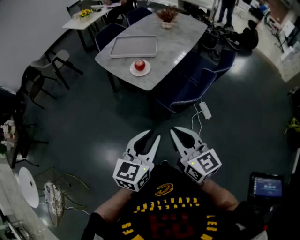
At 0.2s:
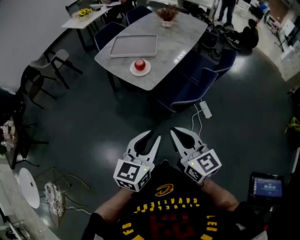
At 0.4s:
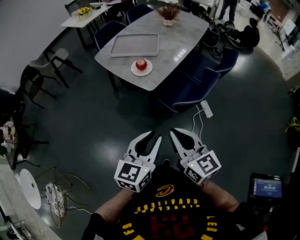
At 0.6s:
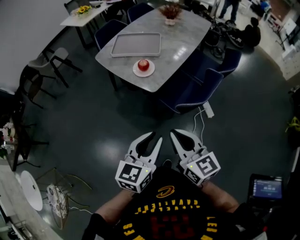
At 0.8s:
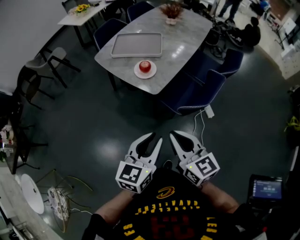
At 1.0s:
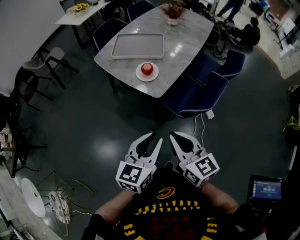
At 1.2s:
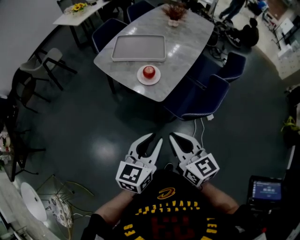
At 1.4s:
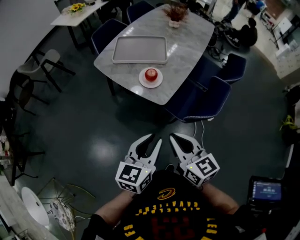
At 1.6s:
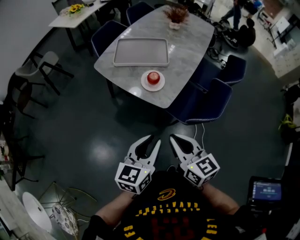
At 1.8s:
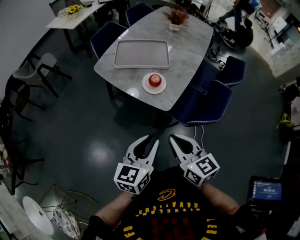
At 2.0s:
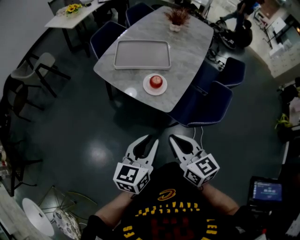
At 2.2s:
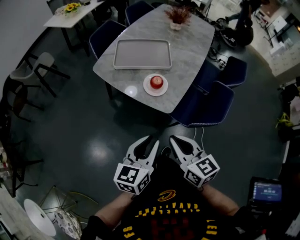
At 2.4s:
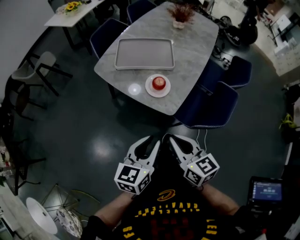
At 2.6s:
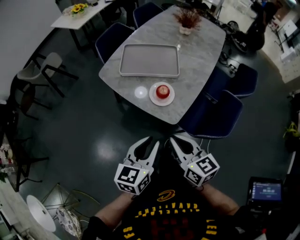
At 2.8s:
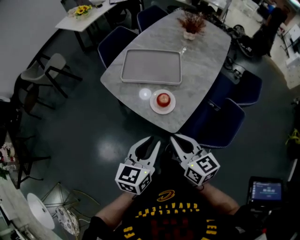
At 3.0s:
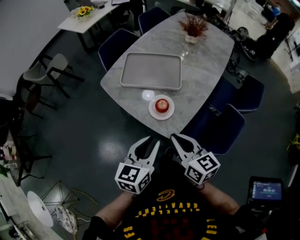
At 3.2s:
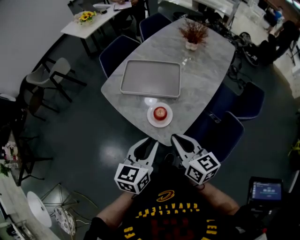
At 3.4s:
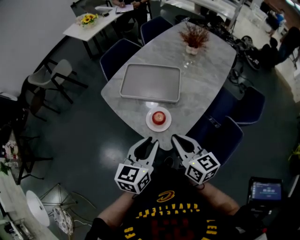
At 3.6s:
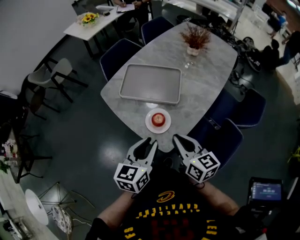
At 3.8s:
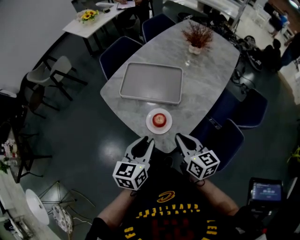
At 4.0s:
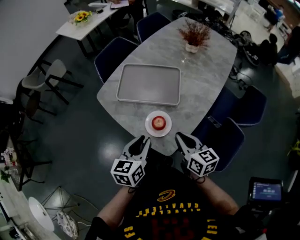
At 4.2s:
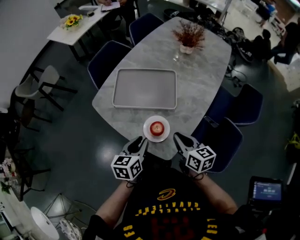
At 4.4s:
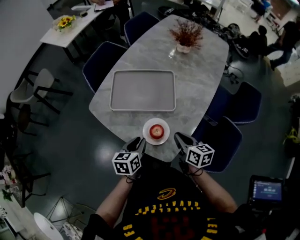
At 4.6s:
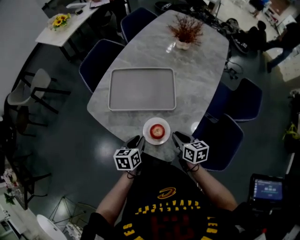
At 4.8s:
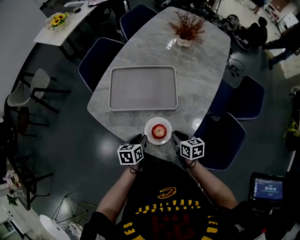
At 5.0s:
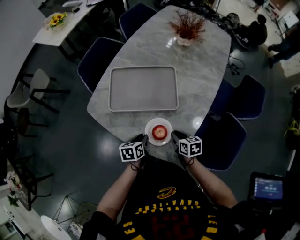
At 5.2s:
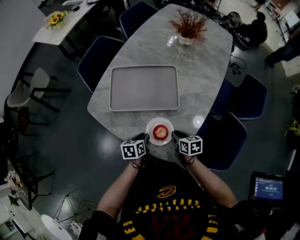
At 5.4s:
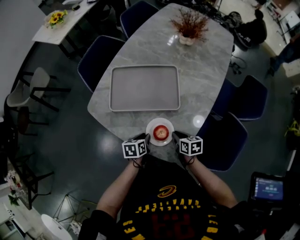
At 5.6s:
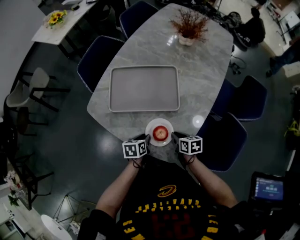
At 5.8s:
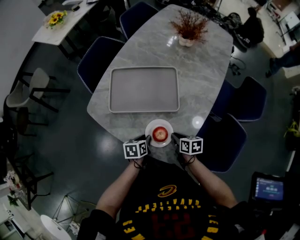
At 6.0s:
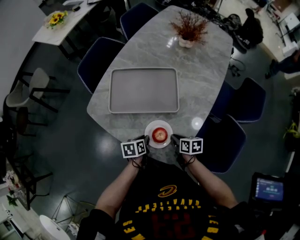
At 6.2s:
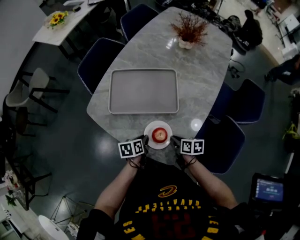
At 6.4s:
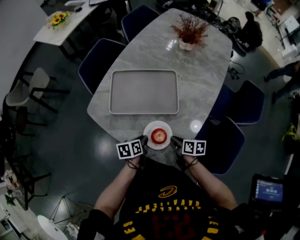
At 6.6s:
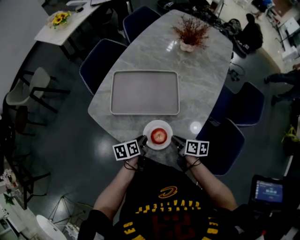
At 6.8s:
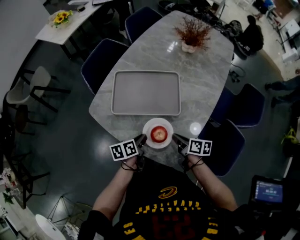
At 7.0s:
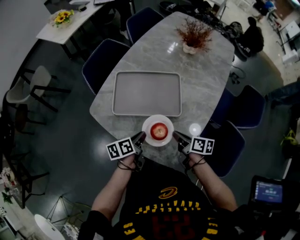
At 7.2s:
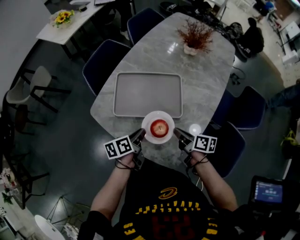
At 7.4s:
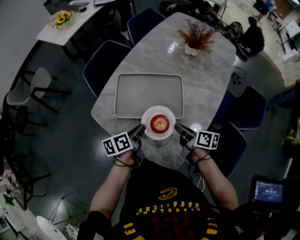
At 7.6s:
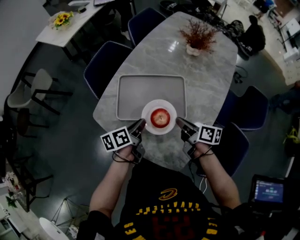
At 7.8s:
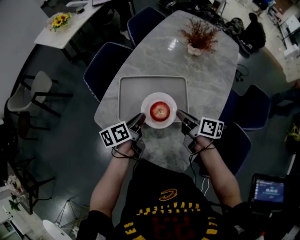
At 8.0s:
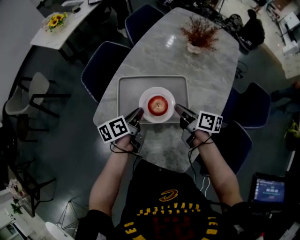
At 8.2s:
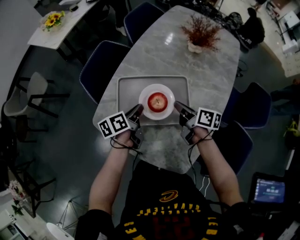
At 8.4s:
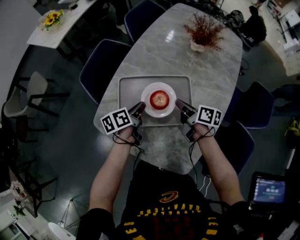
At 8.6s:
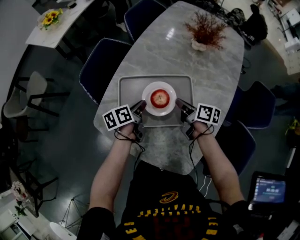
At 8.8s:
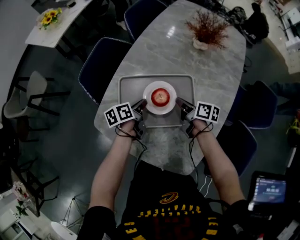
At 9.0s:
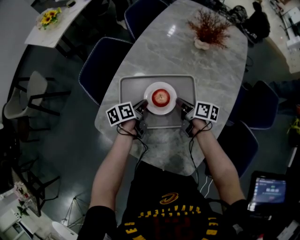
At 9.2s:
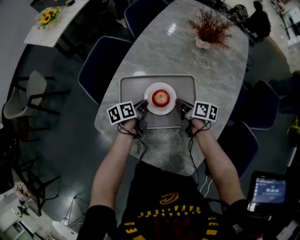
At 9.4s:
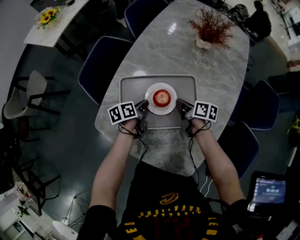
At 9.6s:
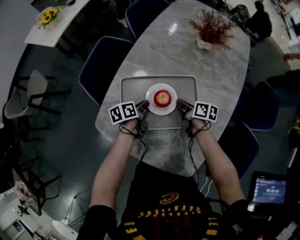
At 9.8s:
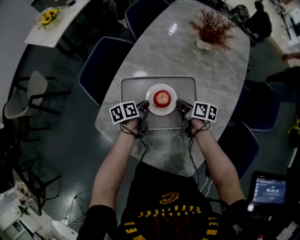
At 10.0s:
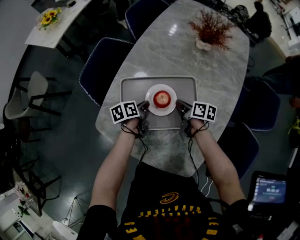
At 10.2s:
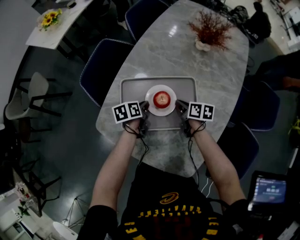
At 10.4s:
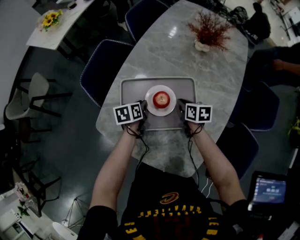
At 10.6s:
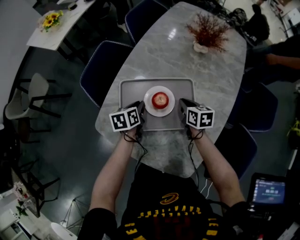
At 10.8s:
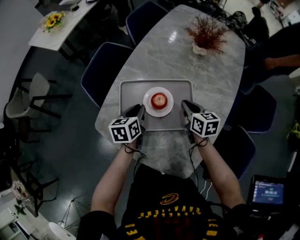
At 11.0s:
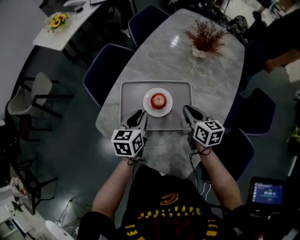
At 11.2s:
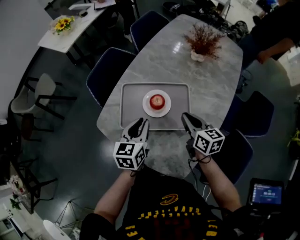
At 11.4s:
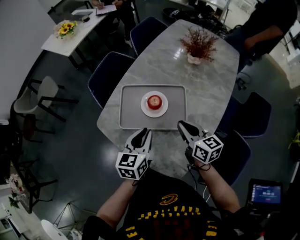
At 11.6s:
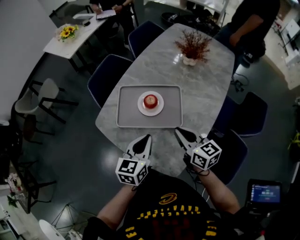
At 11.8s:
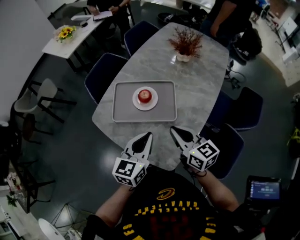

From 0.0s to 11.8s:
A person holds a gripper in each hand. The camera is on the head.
From 0.0s to 1.4s: The two grippers go some 20 cm forward and to the left.
From 1.4s to 3.0s: Both grippers travel together forward, roughly 20 cm.
From 3.0s to 4.4s: The right gripper travels forward, downward and to the right by some 20 cm, and changes its angle by some 20 degrees; the left gripper shifts about 20 cm forward and downward, and rotates approximately 20 degrees.
From 4.4s to 6.0s: Both grippers move downward, approximately 15 cm. The right gripper turns by about 20 degrees. Meanwhile the left gripper turns by some 20 degrees.
From 6.0s to 7.4s: The grippers both shift upward and forward by roughly 15 cm. The left gripper swivels approximately 30 degrees. Meanwhile the right gripper rotates approximately 30 degrees.
From 7.4s to 8.8s: Both grippers travel together forward, about 15 cm.
From 8.8s to 10.4s: The left gripper rotates roughly 20 degrees, while the right gripper changes its angle by approximately 30 degrees.
From 10.4s to 11.8s: The right gripper is displaced upward and backward by some 30 cm, and angles its fingers upward, by roughly 30 degrees, while the left gripper heads upward, backward and to the right, covering roughly 35 cm, and tips its fingers upward by approximately 30 degrees.

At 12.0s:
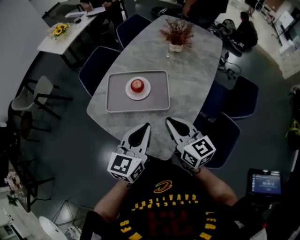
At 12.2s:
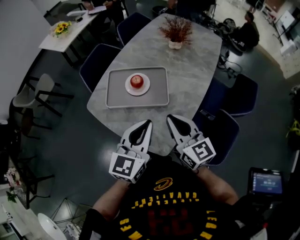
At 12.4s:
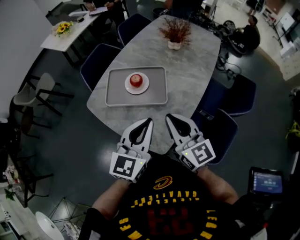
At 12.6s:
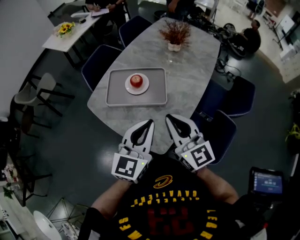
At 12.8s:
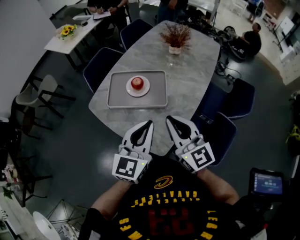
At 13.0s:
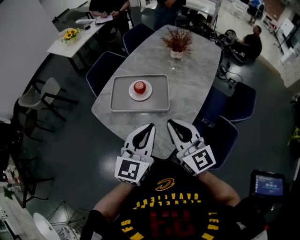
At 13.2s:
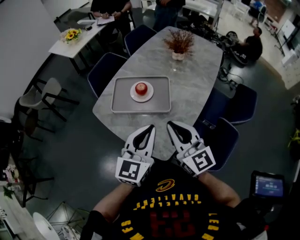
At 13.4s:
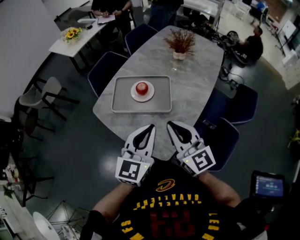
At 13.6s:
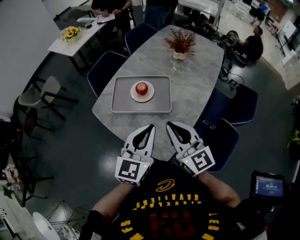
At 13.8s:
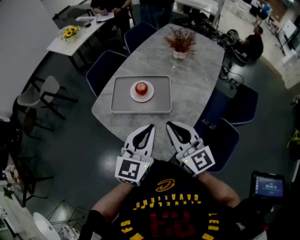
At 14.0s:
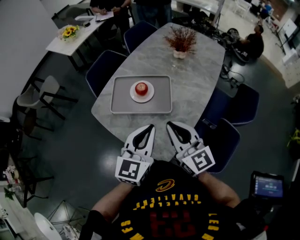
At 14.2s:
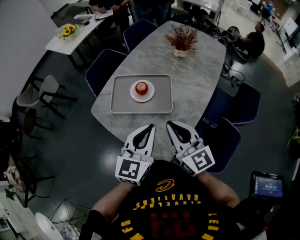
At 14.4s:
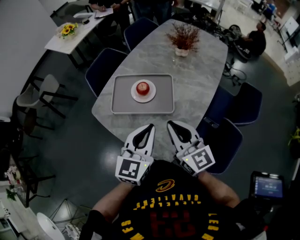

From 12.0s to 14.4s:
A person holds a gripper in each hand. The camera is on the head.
From 12.0s to 13.2s: The left gripper shifts by roughly 5 cm. The right gripper moves upward and backward, about 10 cm.
From 13.2s to 14.4s: The right gripper shifts by roughly 5 cm; the left gripper ends up some 5 cm from where it was.

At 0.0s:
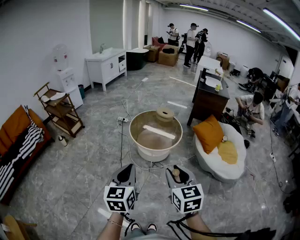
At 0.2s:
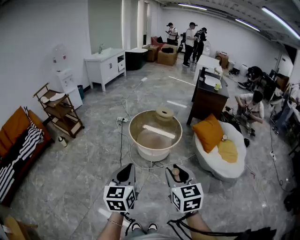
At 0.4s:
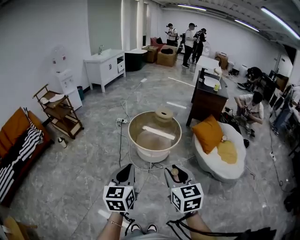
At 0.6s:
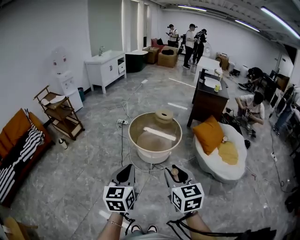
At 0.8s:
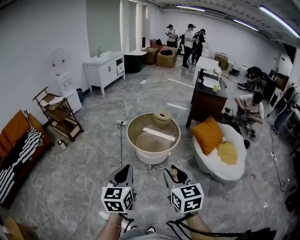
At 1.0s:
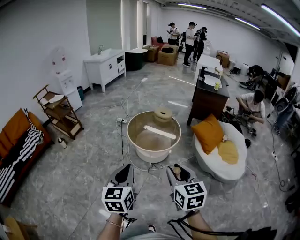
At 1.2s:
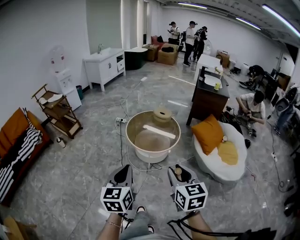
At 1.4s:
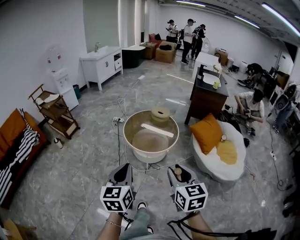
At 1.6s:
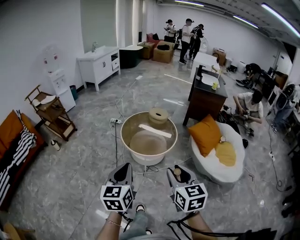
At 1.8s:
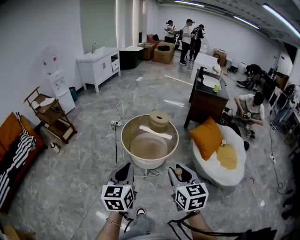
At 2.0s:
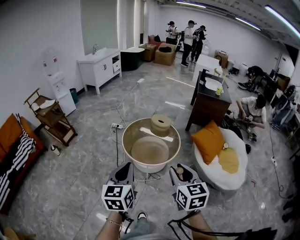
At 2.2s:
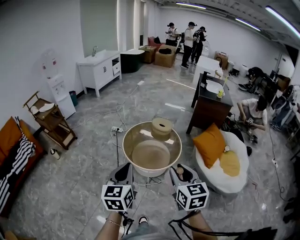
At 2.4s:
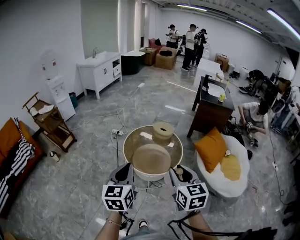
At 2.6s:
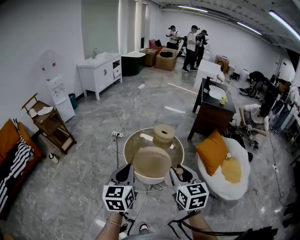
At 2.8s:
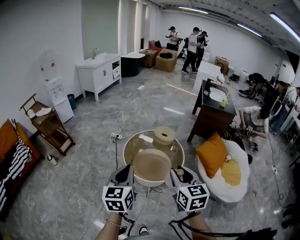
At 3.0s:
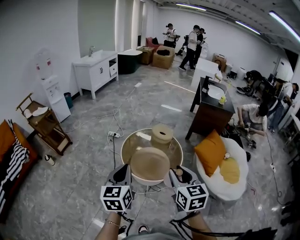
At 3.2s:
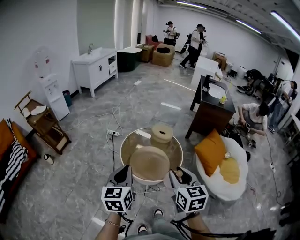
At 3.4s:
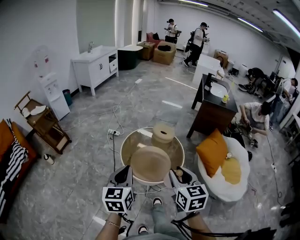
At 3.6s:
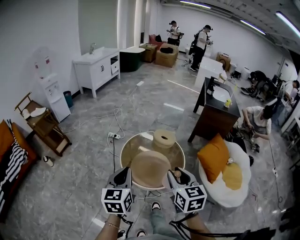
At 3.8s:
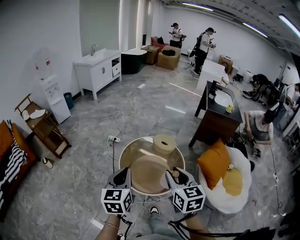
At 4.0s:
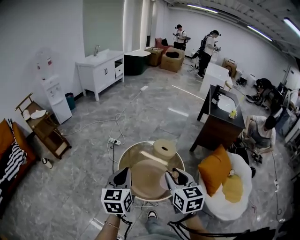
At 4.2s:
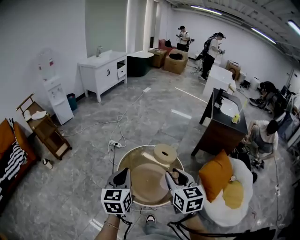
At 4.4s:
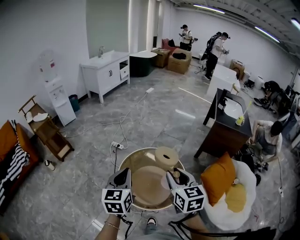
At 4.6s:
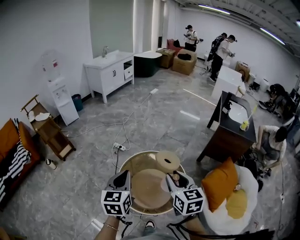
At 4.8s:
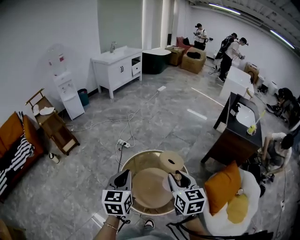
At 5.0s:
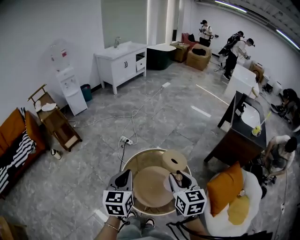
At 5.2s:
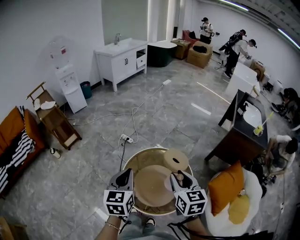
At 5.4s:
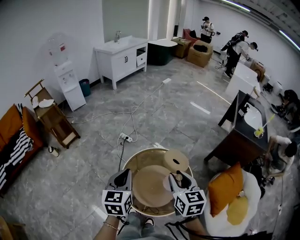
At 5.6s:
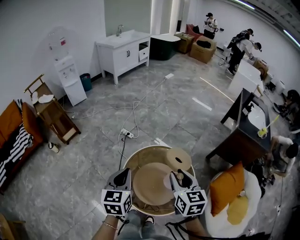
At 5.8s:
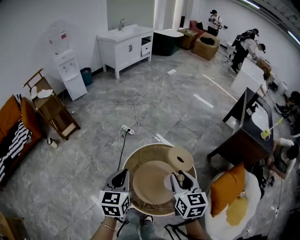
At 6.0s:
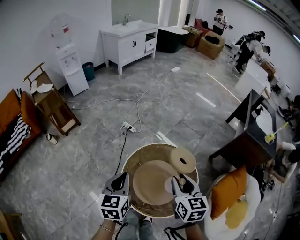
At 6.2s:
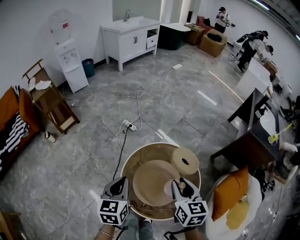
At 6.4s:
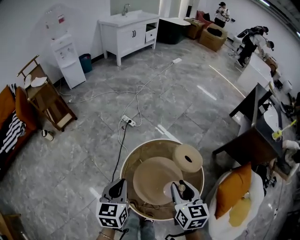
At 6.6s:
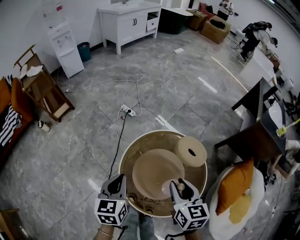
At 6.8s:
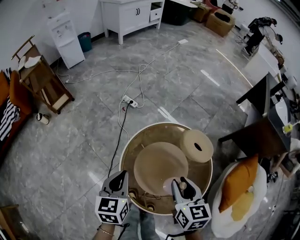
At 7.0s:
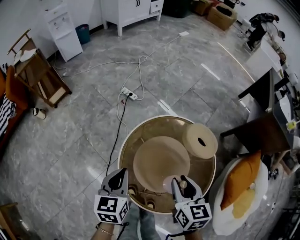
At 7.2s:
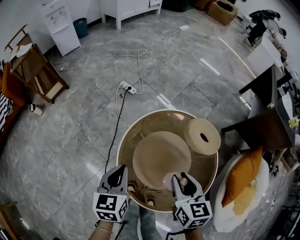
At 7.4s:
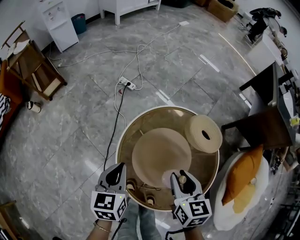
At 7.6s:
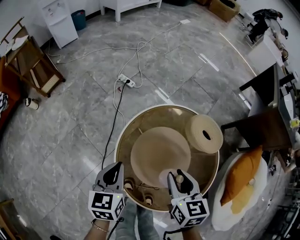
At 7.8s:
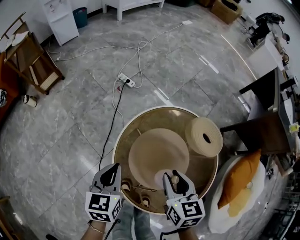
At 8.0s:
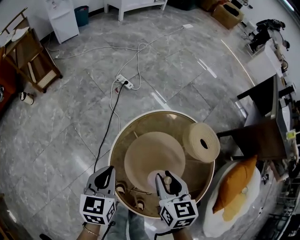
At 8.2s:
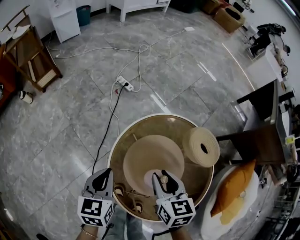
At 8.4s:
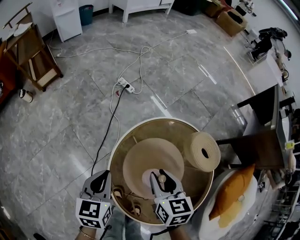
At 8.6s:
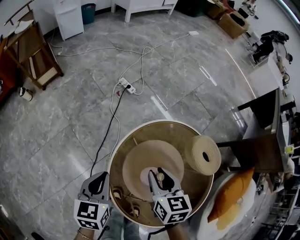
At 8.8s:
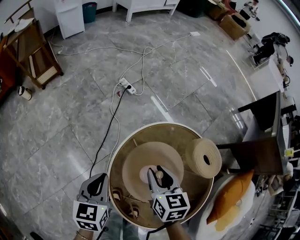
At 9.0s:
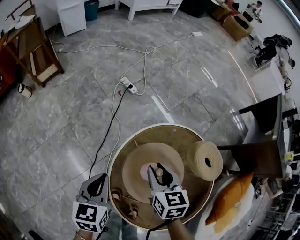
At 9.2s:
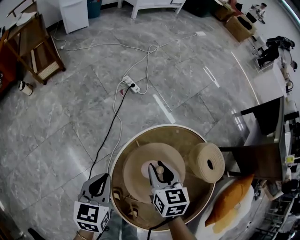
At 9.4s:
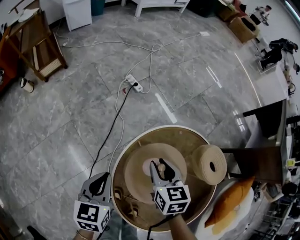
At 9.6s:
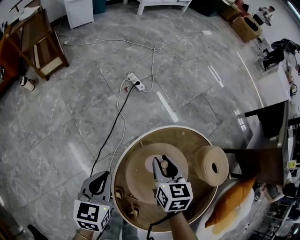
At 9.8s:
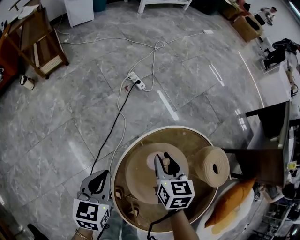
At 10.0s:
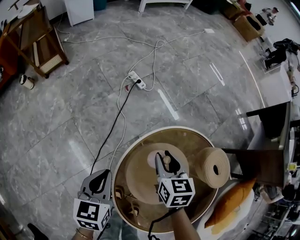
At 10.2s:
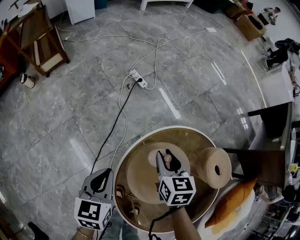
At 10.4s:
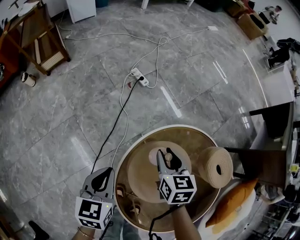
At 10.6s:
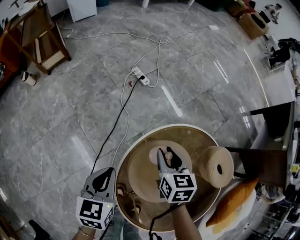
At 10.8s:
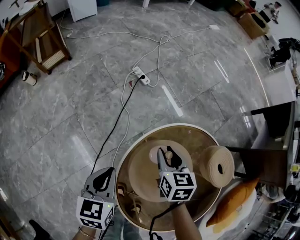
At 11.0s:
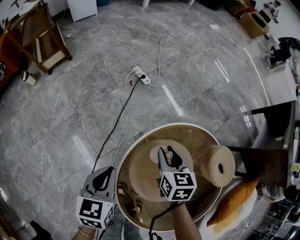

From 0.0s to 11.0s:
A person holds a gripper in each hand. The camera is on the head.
From 0.0s to 1.6s: The right gripper shifts approximately 10 cm forward and to the right; the left gripper is displaced forward by approximately 10 cm.
From 1.6s to 3.2s: The grippers both shift forward by approximately 25 cm.
From 3.2s to 4.8s: Both grippers travel together forward, approximately 30 cm.
From 4.8s to 6.2s: The grippers both shift downward, forward and to the left by about 15 cm.
From 6.2s to 7.8s: The two grippers go about 25 cm downward.
From 7.8s to 9.4s: The right gripper moves forward, downward and to the left, about 20 cm. The left gripper moves to the left, approximately 5 cm.
From 9.4s to 11.0s: The right gripper heads forward, covering about 5 cm.
